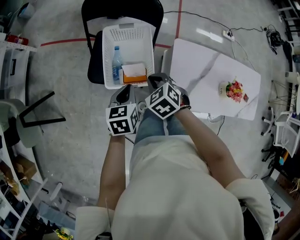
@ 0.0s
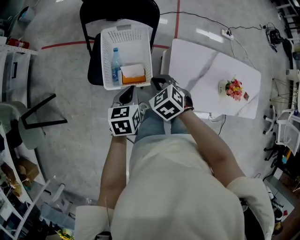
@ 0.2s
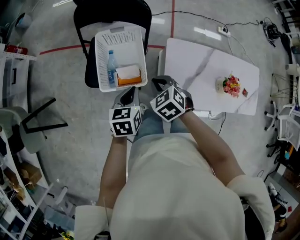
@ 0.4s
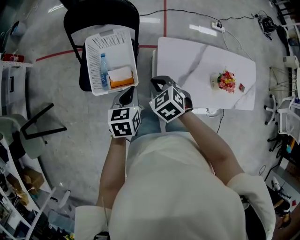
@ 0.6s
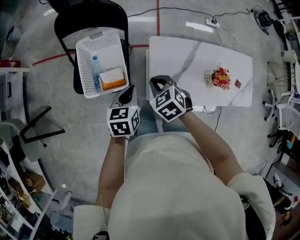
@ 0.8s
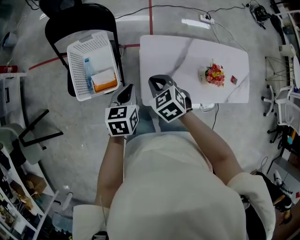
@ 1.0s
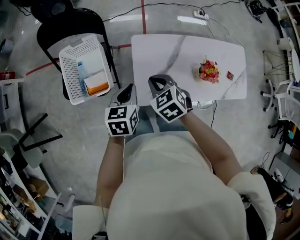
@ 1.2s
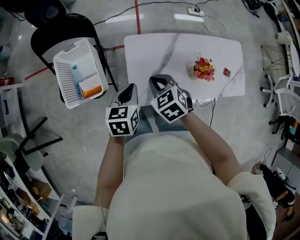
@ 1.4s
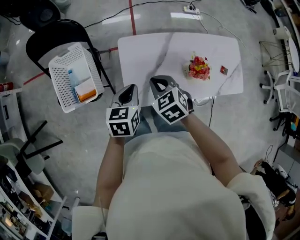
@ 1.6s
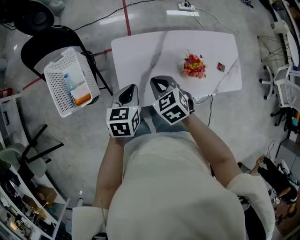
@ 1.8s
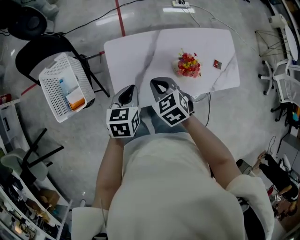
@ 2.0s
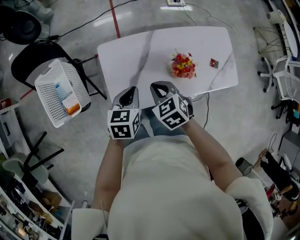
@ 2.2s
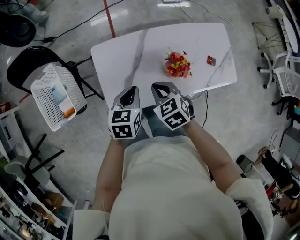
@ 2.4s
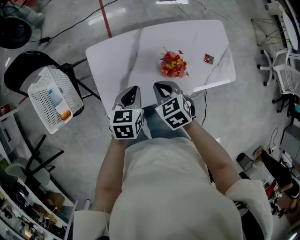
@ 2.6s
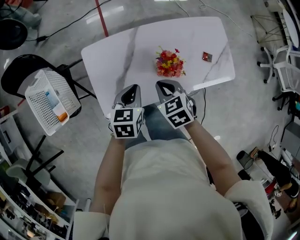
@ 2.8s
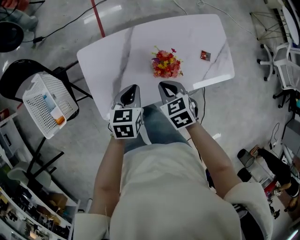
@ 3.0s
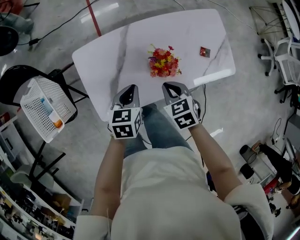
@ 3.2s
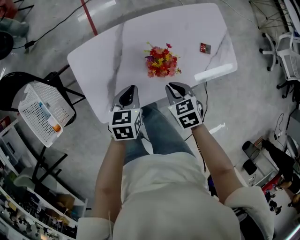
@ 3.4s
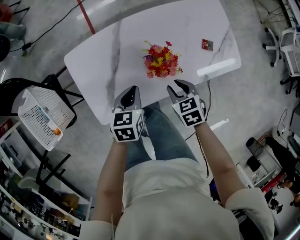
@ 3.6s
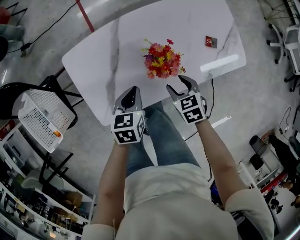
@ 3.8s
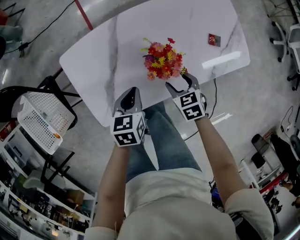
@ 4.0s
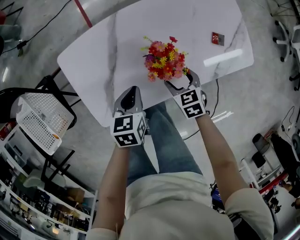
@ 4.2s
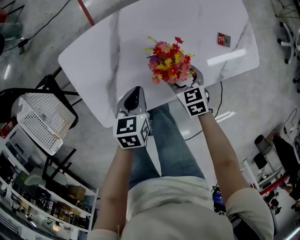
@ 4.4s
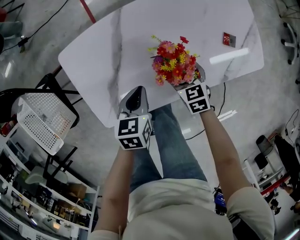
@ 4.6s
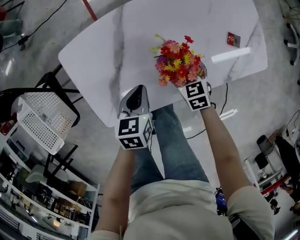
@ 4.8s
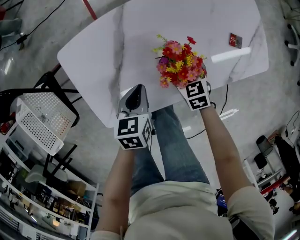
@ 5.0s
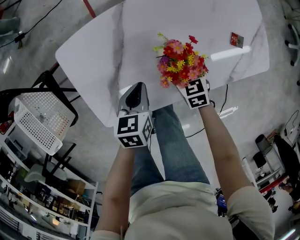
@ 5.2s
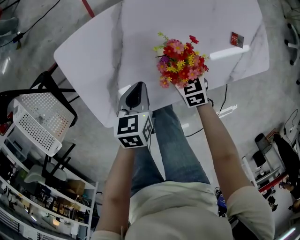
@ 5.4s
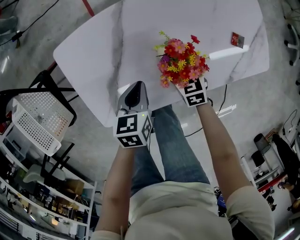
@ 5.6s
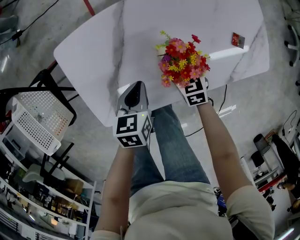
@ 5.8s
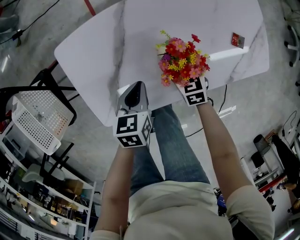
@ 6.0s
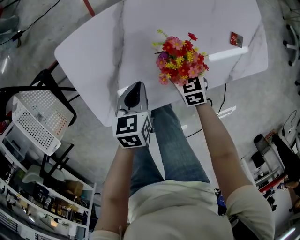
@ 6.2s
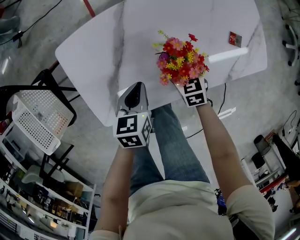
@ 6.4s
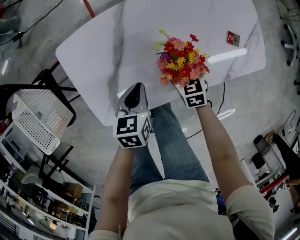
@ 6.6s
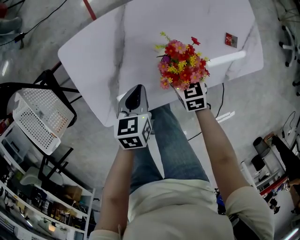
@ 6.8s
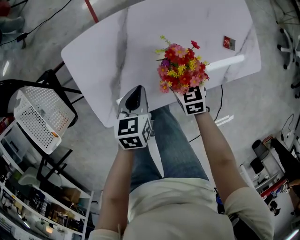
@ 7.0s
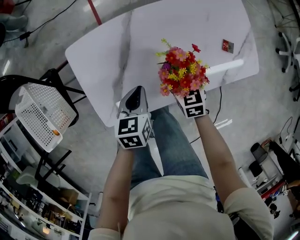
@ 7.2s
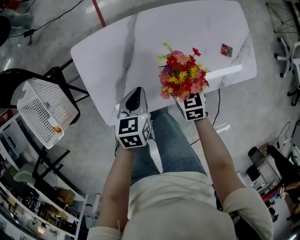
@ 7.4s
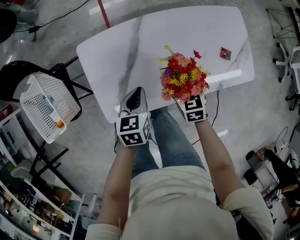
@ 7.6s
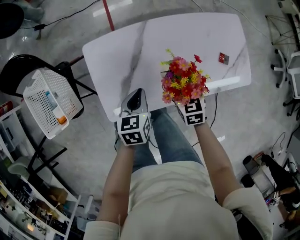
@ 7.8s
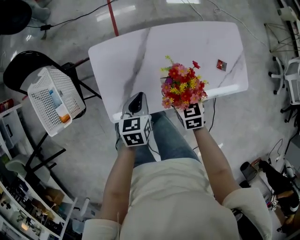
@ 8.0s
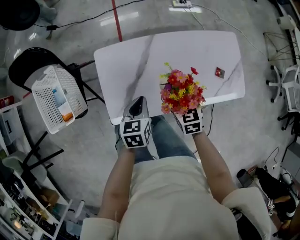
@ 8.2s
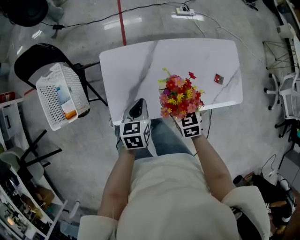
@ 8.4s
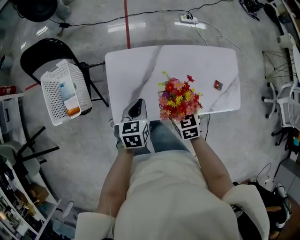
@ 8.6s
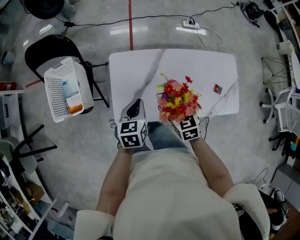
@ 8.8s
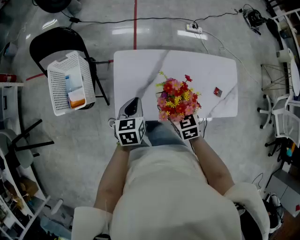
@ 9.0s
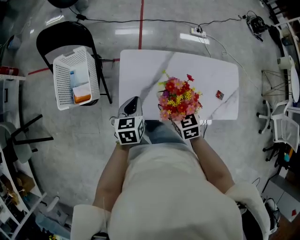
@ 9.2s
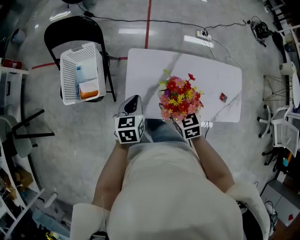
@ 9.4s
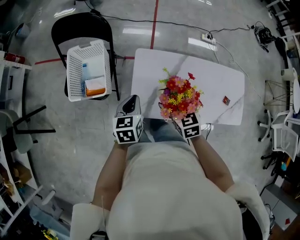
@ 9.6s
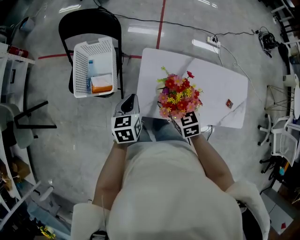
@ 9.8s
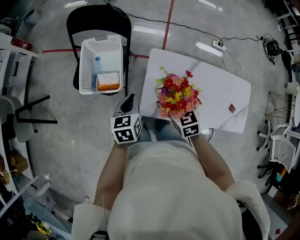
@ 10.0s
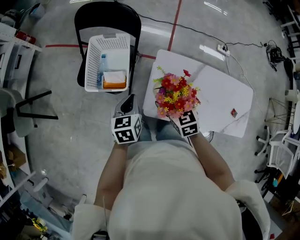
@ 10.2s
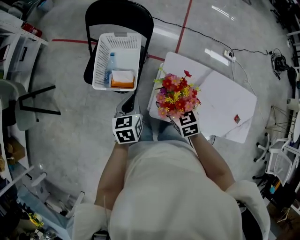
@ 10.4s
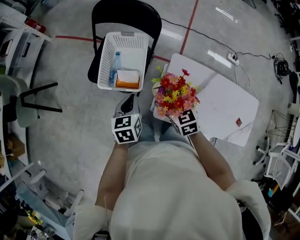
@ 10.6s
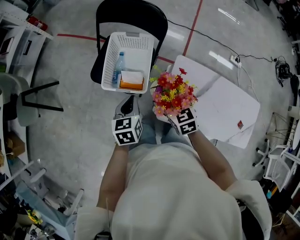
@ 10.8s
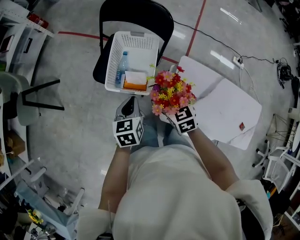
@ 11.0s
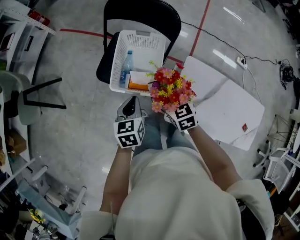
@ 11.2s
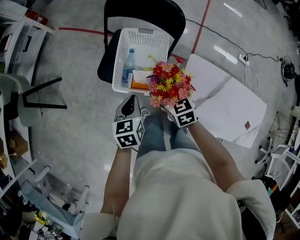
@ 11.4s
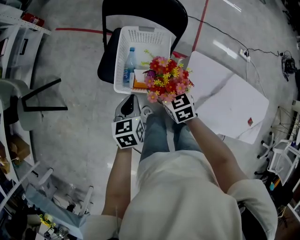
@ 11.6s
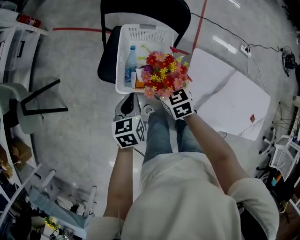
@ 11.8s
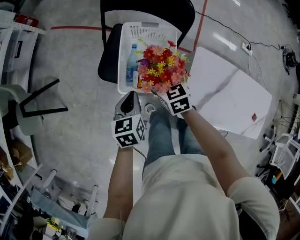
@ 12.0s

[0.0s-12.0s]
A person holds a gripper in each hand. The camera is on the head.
0.0s to 1.6s: The grippers both shift to the right by some 30 cm. The right gripper turns by some 20 degrees. Meanwhile the left gripper changes its angle by roughly 20 degrees.
1.6s to 3.0s: Both grippers move to the right, roughly 25 cm.
3.0s to 4.4s: Both grippers move downward, about 15 cm. The right gripper opens up.
4.4s to 6.0s: The right gripper is displaced forward by some 5 cm.
6.0s to 7.6s: The right gripper is displaced upward by some 15 cm; the left gripper is displaced upward by approximately 10 cm.
7.6s to 9.0s: Both grippers move upward and to the left, approximately 20 cm.
9.0s to 10.4s: Both grippers travel together to the left, roughly 30 cm. The left gripper rotates roughly 20 degrees.
10.4s to 12.0s: The left gripper travels to the left and forward by about 20 cm, while the right gripper travels forward and to the left by approximately 30 cm.

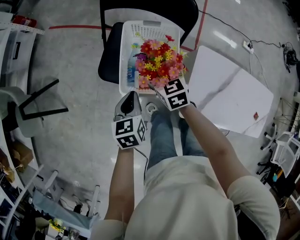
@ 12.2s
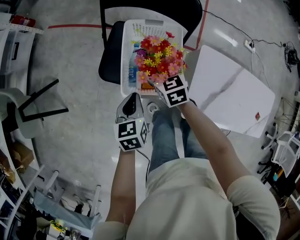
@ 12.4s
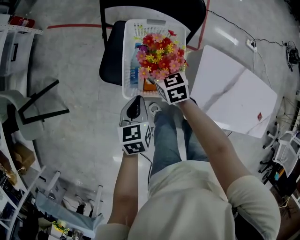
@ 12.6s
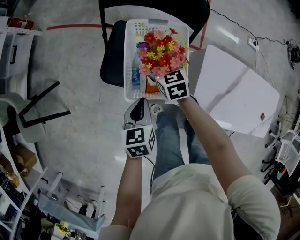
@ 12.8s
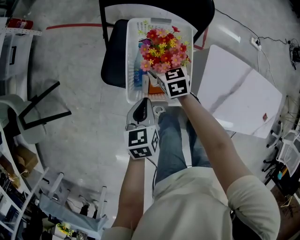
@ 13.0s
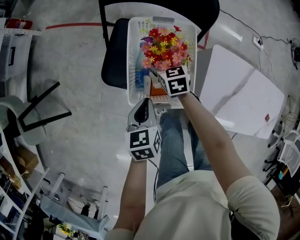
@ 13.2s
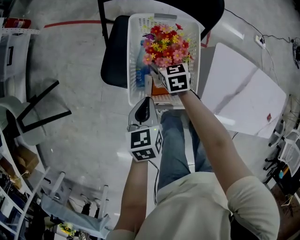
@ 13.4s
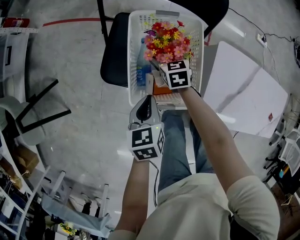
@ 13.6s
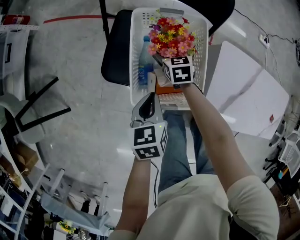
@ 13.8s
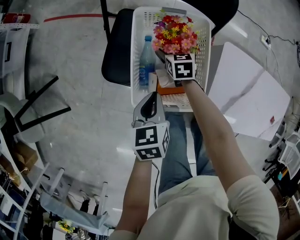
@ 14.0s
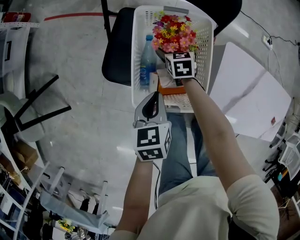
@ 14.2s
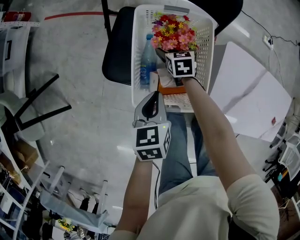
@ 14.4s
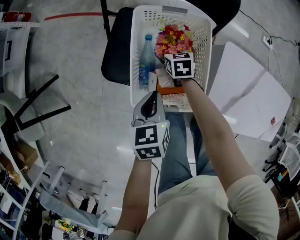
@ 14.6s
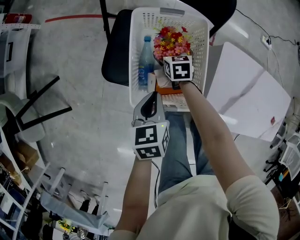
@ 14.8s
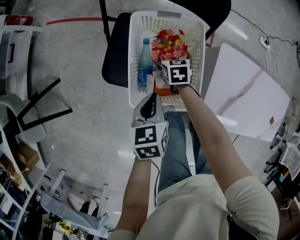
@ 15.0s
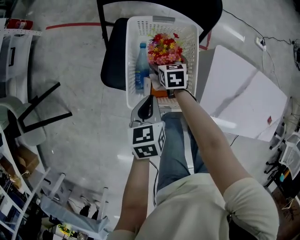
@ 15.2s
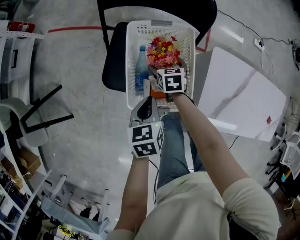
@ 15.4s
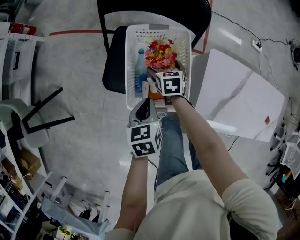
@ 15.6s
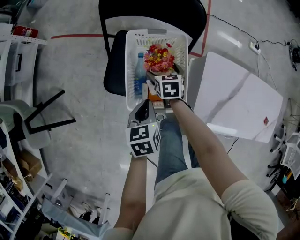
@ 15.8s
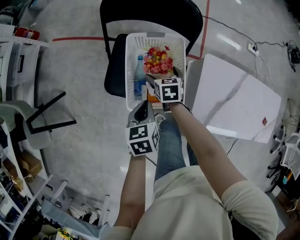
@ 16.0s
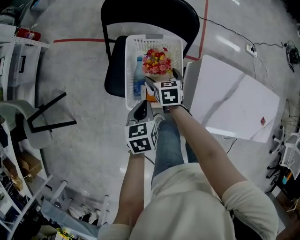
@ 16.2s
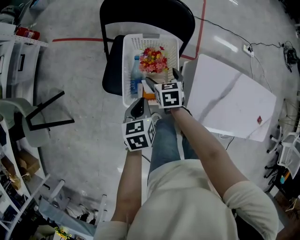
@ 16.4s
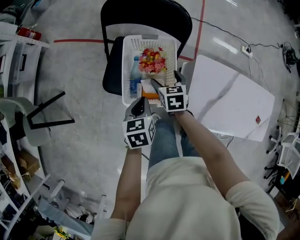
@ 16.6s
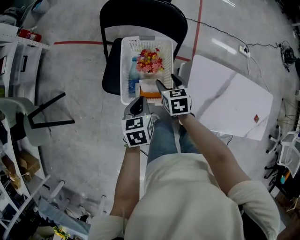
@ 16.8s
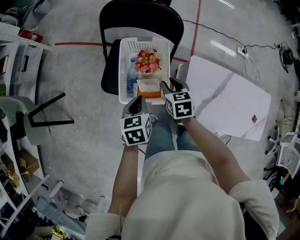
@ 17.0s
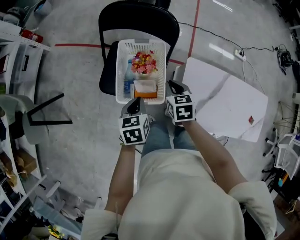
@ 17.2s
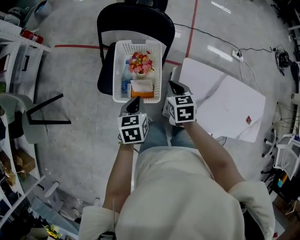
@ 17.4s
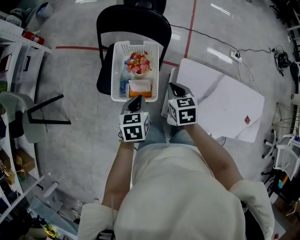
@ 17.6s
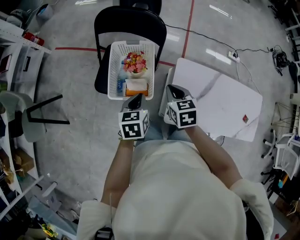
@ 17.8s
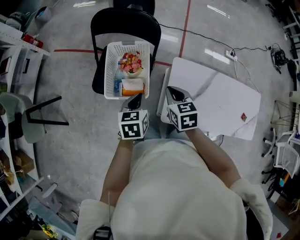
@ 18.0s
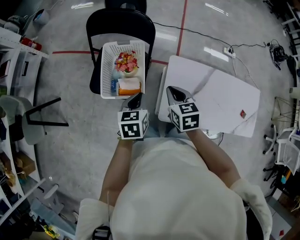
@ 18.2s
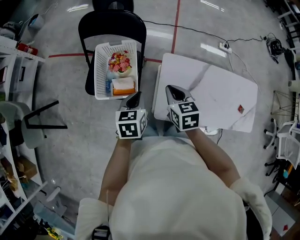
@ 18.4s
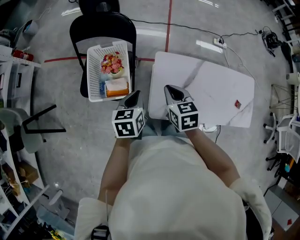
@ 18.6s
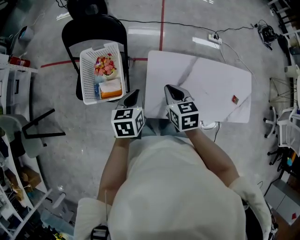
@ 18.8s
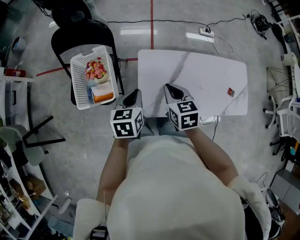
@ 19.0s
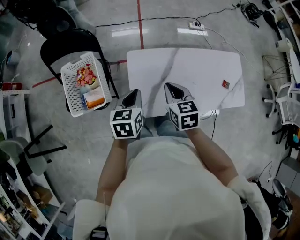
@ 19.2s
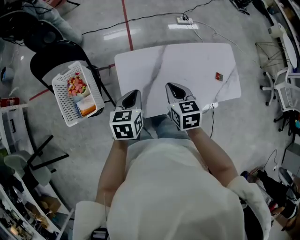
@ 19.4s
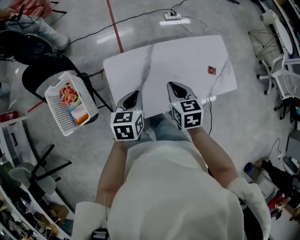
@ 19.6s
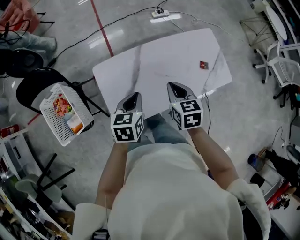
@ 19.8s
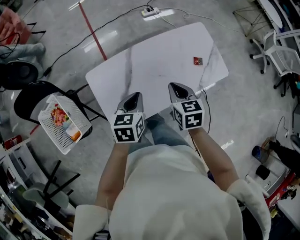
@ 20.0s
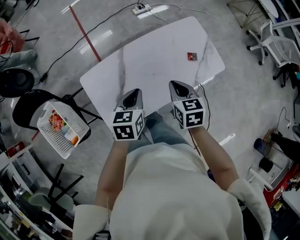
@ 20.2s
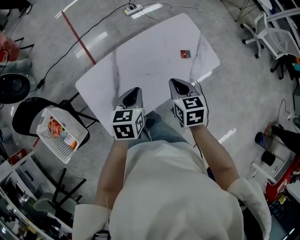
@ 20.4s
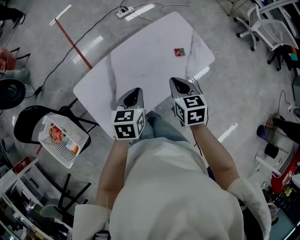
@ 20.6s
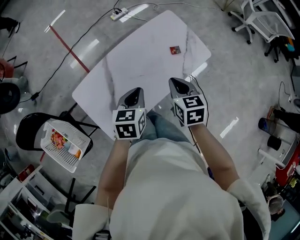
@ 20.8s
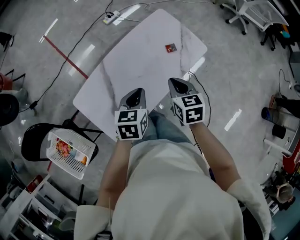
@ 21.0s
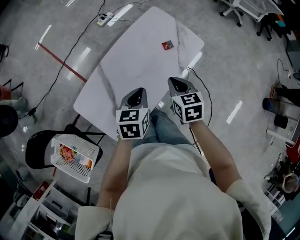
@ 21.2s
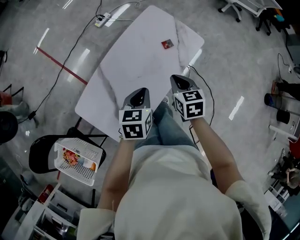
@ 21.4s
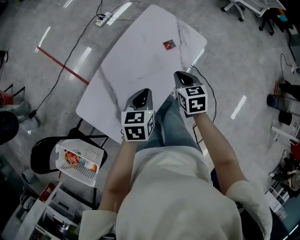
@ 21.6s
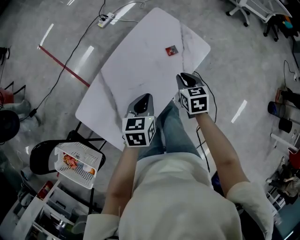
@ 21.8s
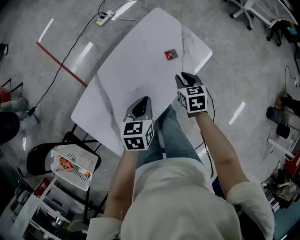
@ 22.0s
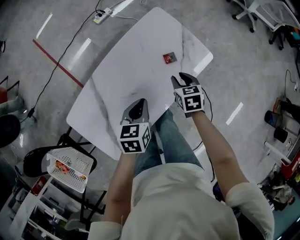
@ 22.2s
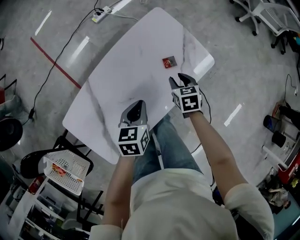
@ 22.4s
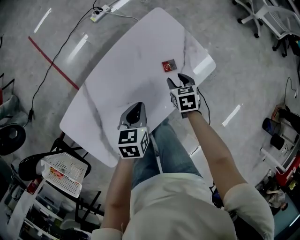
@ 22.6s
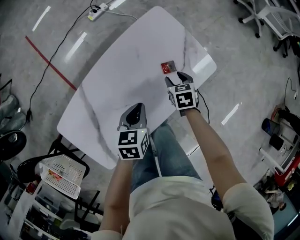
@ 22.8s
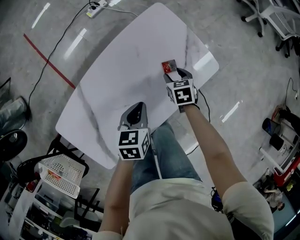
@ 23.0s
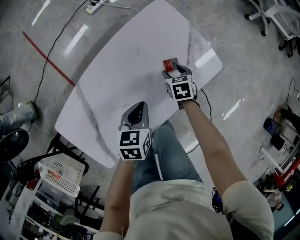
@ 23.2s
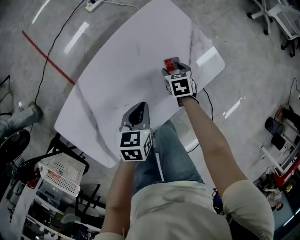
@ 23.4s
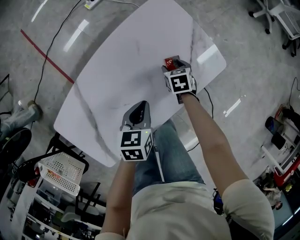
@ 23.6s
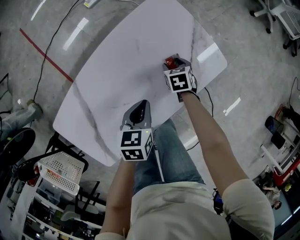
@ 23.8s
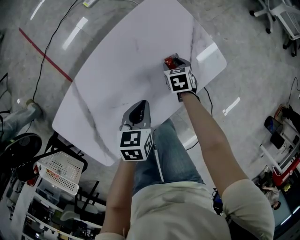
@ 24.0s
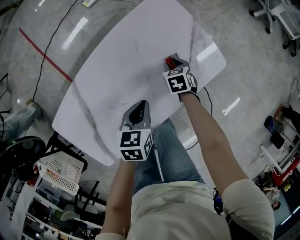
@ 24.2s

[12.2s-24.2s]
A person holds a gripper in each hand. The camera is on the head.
12.2s to 13.8s: The right gripper is displaced downward and forward by about 20 cm; the left gripper moves downward, about 10 cm.
13.8s to 15.2s: The grippers make only small movements.
15.2s to 16.6s: The left gripper heads upward, covering roughly 10 cm, while the right gripper goes roughly 15 cm upward and backward.
16.6s to 18.2s: The right gripper shifts some 25 cm to the right, upward and backward, and closes up, while the left gripper goes about 15 cm to the right, upward and backward.
18.2s to 19.8s: The left gripper changes place by about 40 cm, and turns by some 30 degrees; the right gripper shifts by approximately 40 cm, and rotates approximately 30 degrees.
19.8s to 21.2s: The left gripper changes place by about 20 cm, and changes its angle by approximately 30 degrees, while the right gripper shifts by approximately 15 cm, and turns by approximately 30 degrees.
21.2s to 22.6s: The left gripper travels forward and downward by about 20 cm. The right gripper shifts approximately 30 cm downward and forward, and opens its fingers.
22.6s to 24.2s: The right gripper shifts roughly 15 cm downward and forward. Meanwhile the left gripper goes about 5 cm downward.
